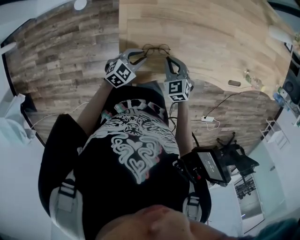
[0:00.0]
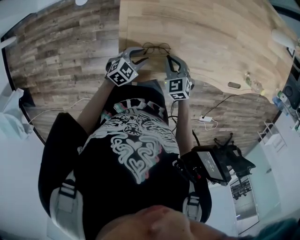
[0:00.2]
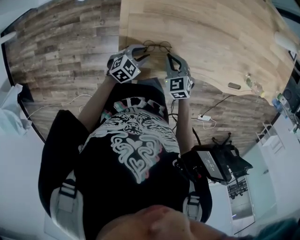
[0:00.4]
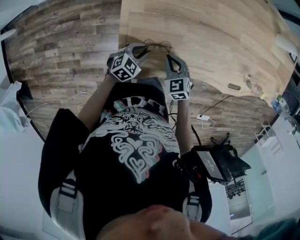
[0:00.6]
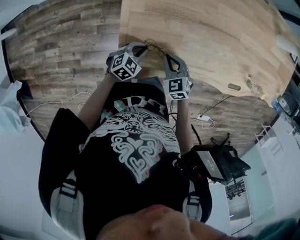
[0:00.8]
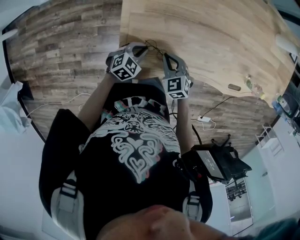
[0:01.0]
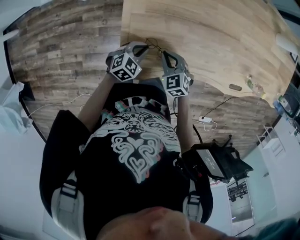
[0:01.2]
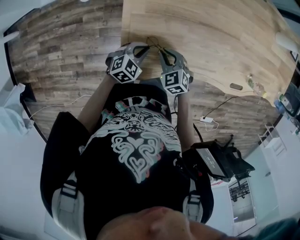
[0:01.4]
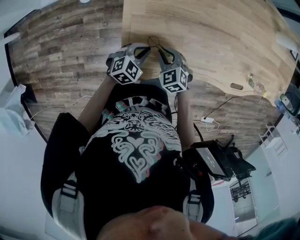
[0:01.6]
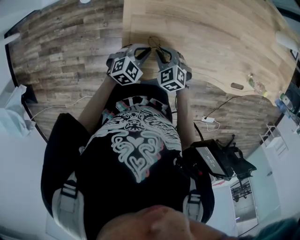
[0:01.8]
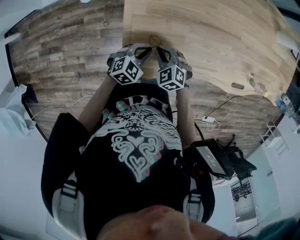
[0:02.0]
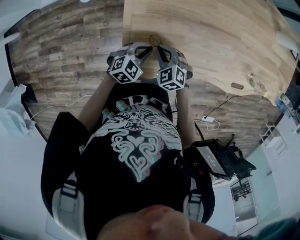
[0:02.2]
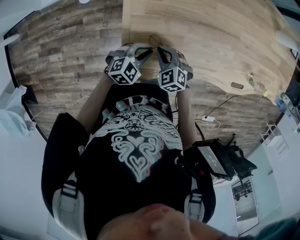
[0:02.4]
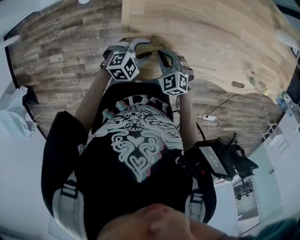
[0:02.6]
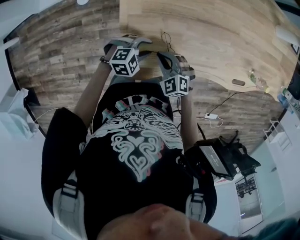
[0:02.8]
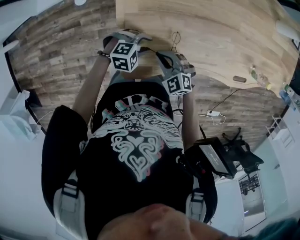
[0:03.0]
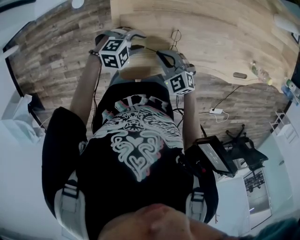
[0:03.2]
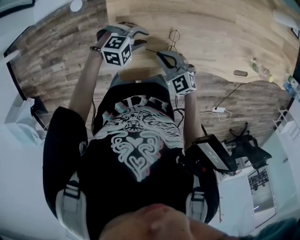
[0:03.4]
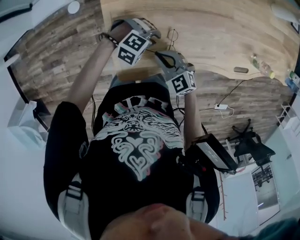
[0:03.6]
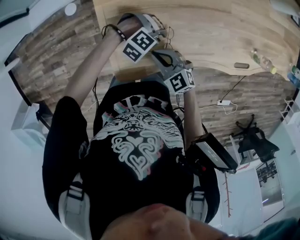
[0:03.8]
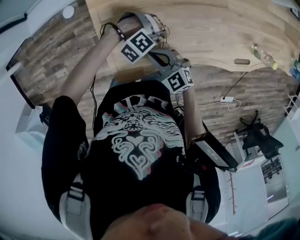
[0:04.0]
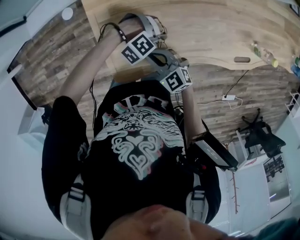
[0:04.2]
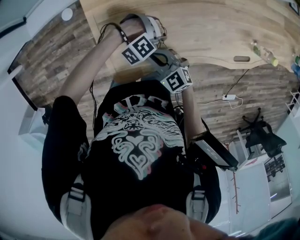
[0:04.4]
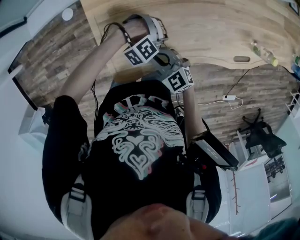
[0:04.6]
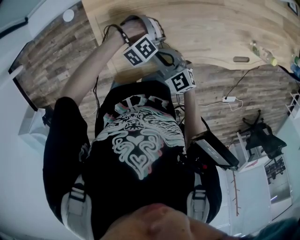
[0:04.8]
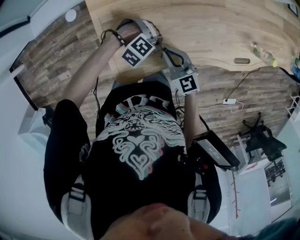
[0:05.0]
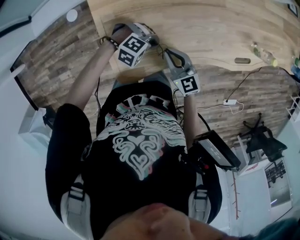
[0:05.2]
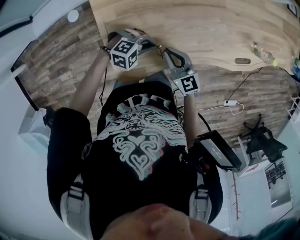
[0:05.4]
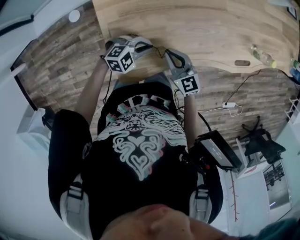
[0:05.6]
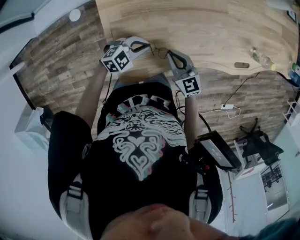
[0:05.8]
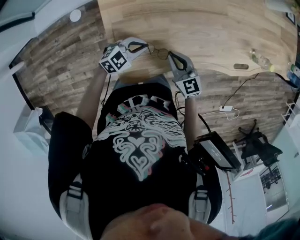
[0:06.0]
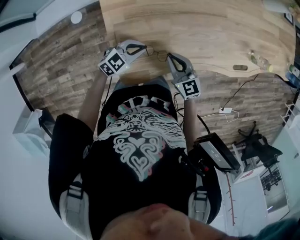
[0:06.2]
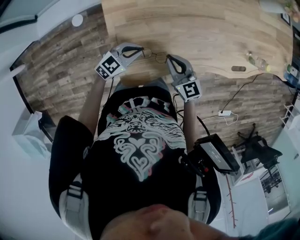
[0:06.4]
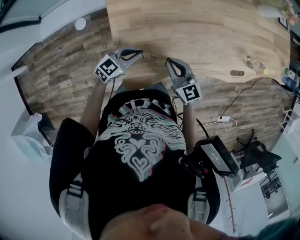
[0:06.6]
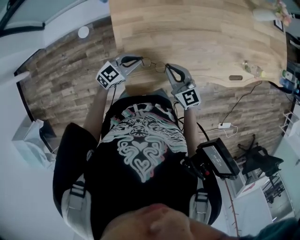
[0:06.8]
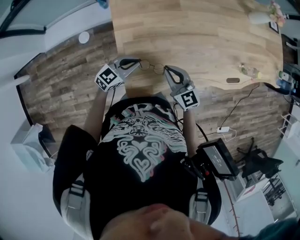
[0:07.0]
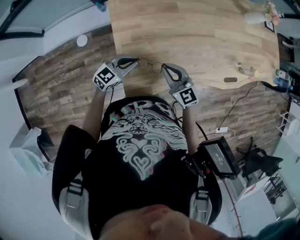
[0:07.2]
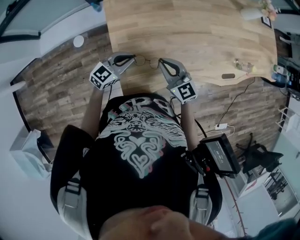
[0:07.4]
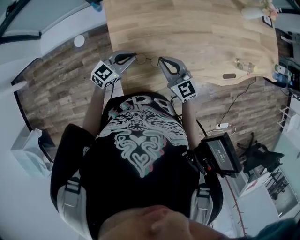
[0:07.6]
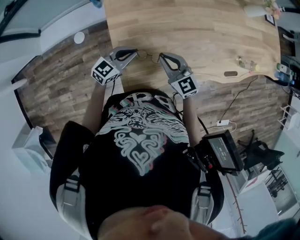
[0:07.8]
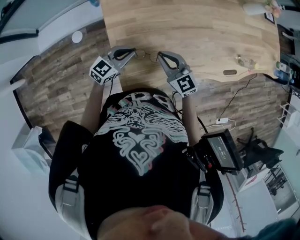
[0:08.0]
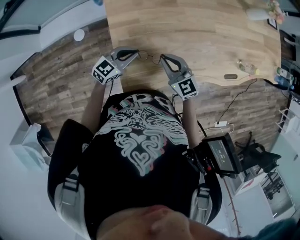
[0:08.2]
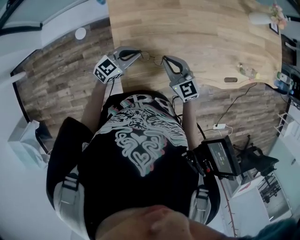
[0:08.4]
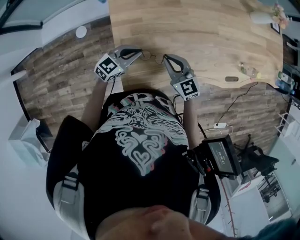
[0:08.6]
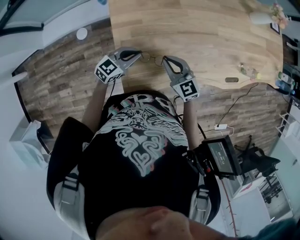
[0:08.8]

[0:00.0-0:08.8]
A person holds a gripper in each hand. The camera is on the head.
0:00.0 to 0:01.4: The grippers make only small movements.
0:01.4 to 0:03.0: The left gripper turns by some 40 degrees, and opens up.
0:03.0 to 0:04.4: The left gripper changes place by about 15 cm, rotates around the line of its fingers by about 60 degrees, clockwise from behind, and closes. Meanwhile the right gripper changes place by approximately 5 cm.
0:04.4 to 0:05.8: The left gripper changes place by approximately 10 cm, and rotates around the line of its fingers by roughly 70 degrees, counterclockwise from behind. The right gripper moves about 5 cm, and rotates approximately 30 degrees.
0:05.8 to 0:07.4: The grippers both shift upward and to the left by some 15 cm. The left gripper turns by about 30 degrees.
0:07.4 to 0:08.8: The grippers make only small movements.

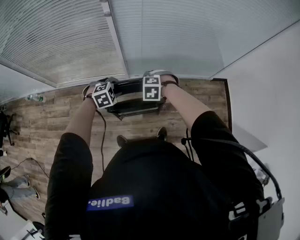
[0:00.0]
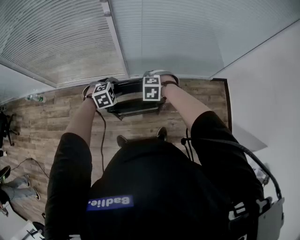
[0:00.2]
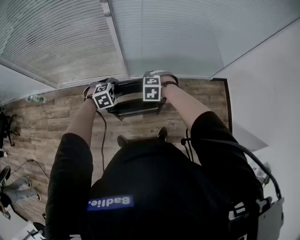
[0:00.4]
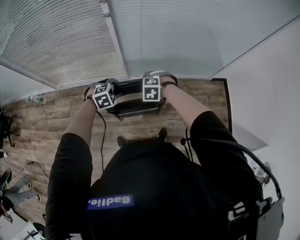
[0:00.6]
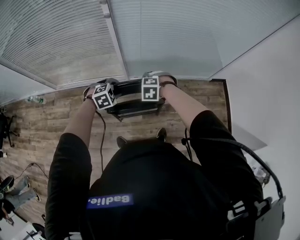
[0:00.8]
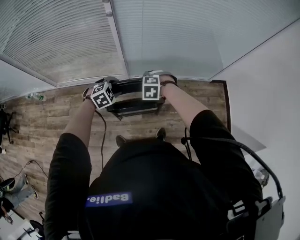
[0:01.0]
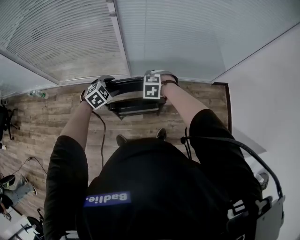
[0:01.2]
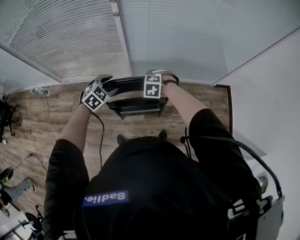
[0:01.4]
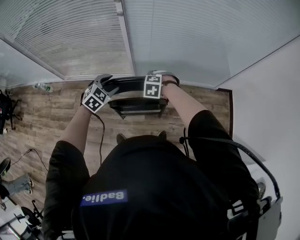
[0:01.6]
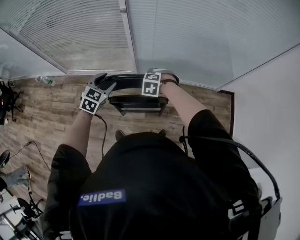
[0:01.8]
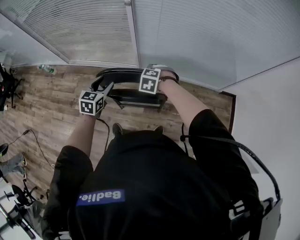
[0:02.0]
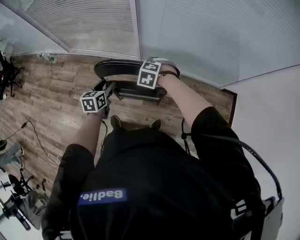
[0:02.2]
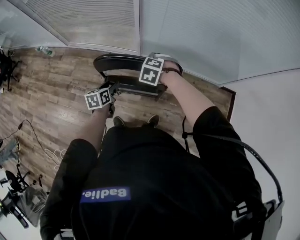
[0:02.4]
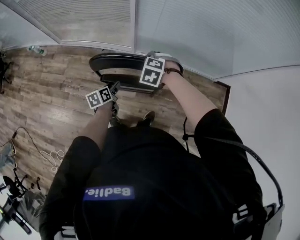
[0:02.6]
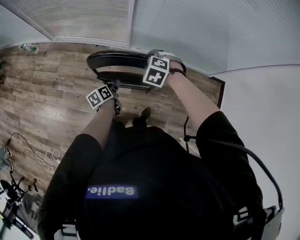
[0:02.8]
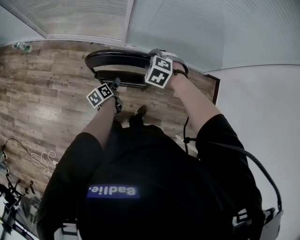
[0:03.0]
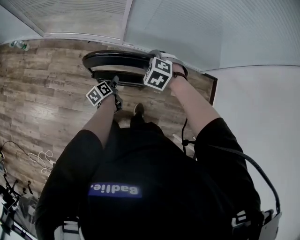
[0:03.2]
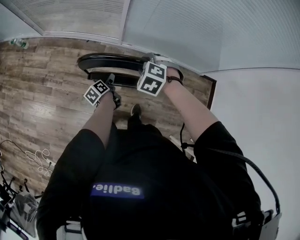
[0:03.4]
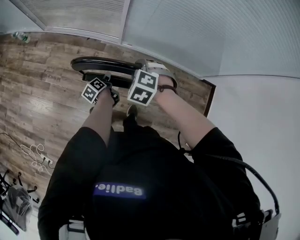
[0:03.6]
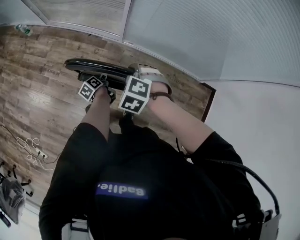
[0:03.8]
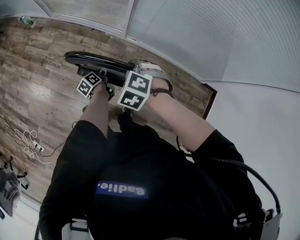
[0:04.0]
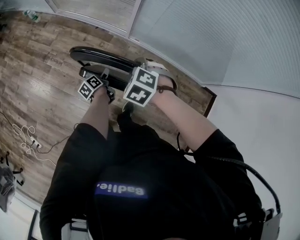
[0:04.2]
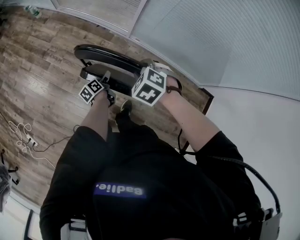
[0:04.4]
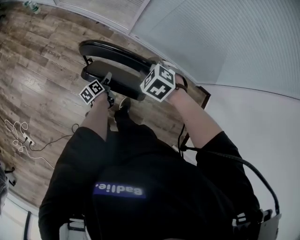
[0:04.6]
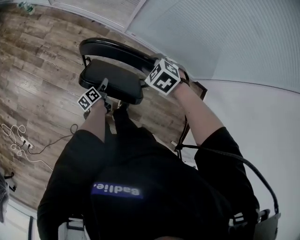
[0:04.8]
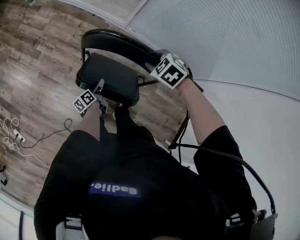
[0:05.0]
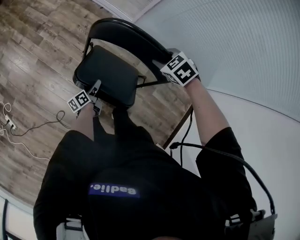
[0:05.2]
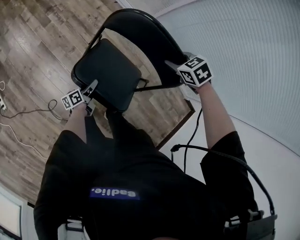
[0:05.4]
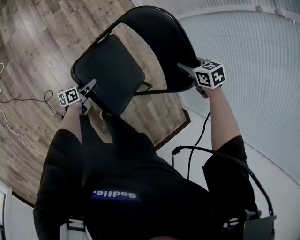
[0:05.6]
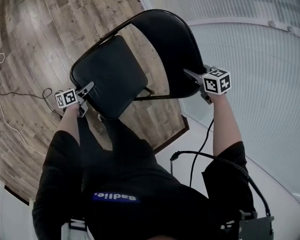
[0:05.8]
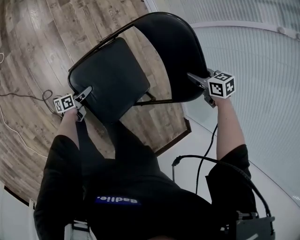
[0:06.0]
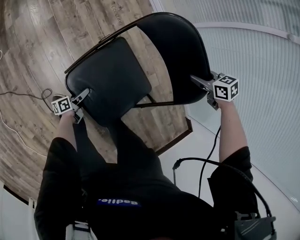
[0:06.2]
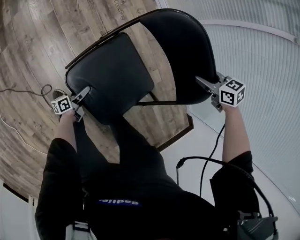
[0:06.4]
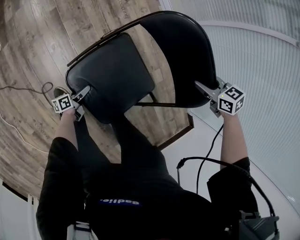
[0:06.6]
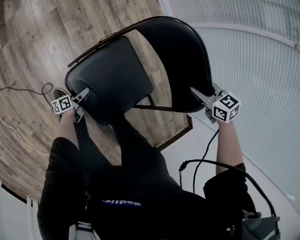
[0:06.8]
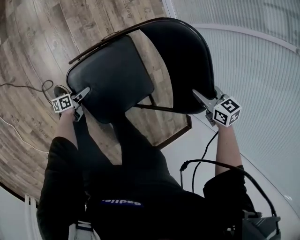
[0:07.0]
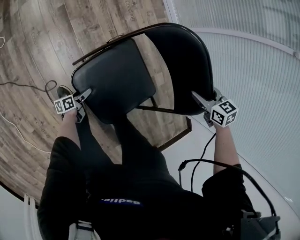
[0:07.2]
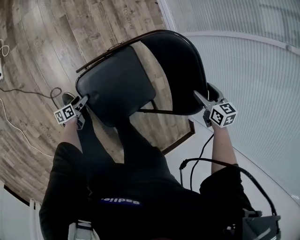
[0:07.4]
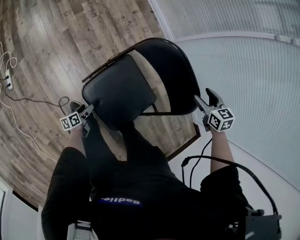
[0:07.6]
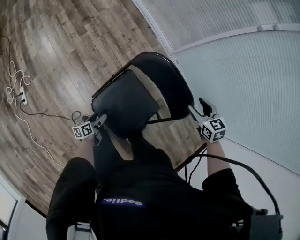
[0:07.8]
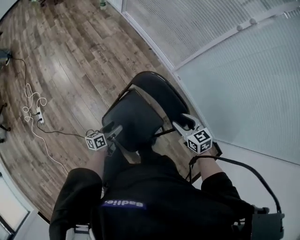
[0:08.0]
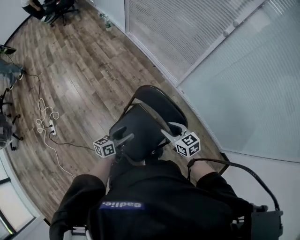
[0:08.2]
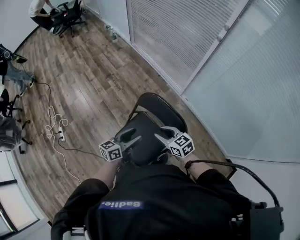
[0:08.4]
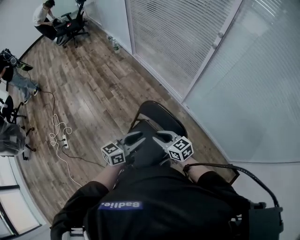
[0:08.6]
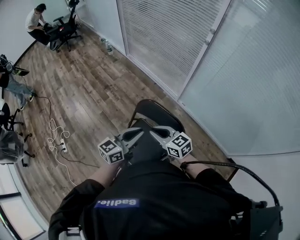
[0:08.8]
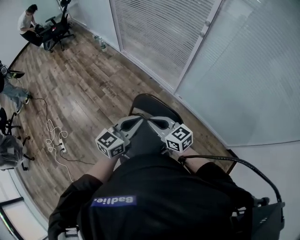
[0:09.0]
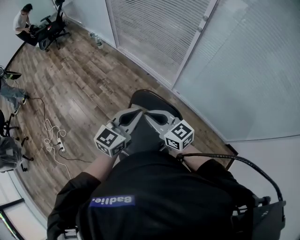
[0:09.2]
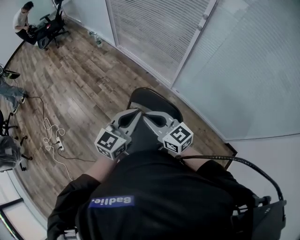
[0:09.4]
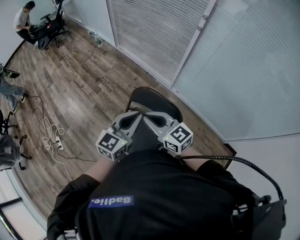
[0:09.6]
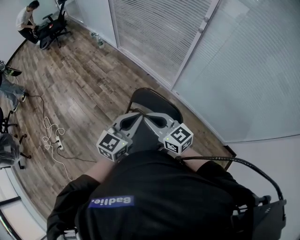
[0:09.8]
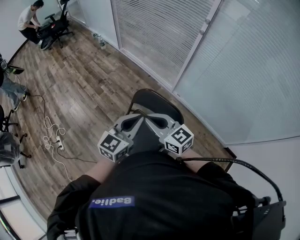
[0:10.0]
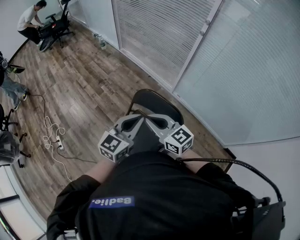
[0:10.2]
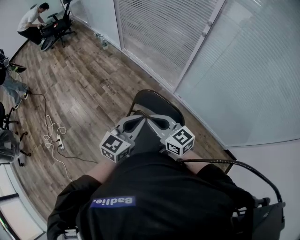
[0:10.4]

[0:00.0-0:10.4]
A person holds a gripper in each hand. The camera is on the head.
0:00.0 to 0:01.4: The left gripper goes about 5 cm upward, and turns by about 30 degrees.
0:01.4 to 0:03.0: The left gripper travels downward and backward by some 25 cm, and rolls counterclockwise, seen from behind, by some 110 degrees.
0:03.0 to 0:04.4: The left gripper heads downward, covering some 5 cm, and changes its angle by roughly 20 degrees; the right gripper is displaced backward by some 10 cm.
0:04.4 to 0:06.0: The left gripper moves approximately 35 cm; the right gripper travels downward by some 15 cm, and rotates roughly 30 degrees.
0:06.0 to 0:07.4: The right gripper moves approximately 10 cm, and opens up. The left gripper ends up about 20 cm from where it was.
0:07.4 to 0:09.0: The right gripper travels upward, to the left and backward by roughly 35 cm, tilts its fingers some 50 degrees upward, and closes its fingers, while the left gripper moves upward, about 70 cm, rotates around the line of its fingers by some 70 degrees, clockwise from behind, and closes.
0:09.0 to 0:10.4: The right gripper shifts by approximately 5 cm.

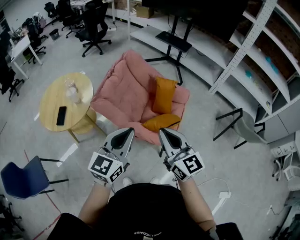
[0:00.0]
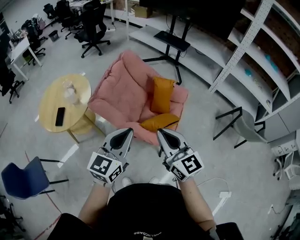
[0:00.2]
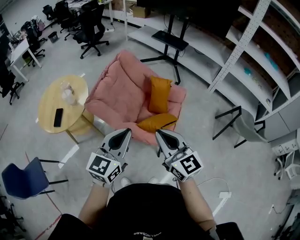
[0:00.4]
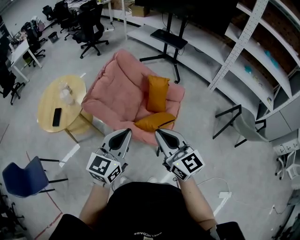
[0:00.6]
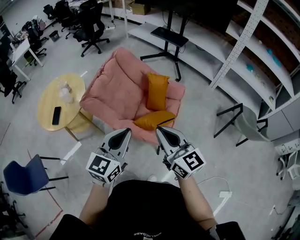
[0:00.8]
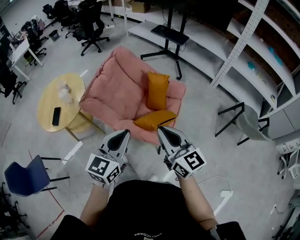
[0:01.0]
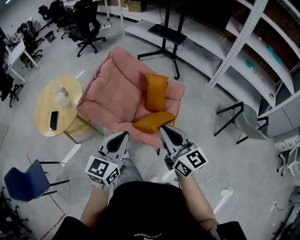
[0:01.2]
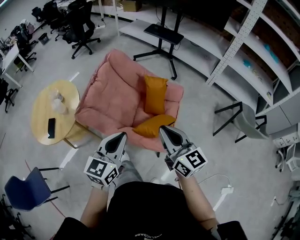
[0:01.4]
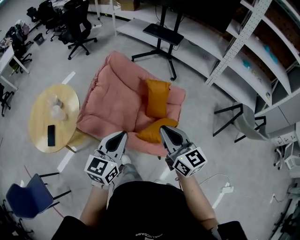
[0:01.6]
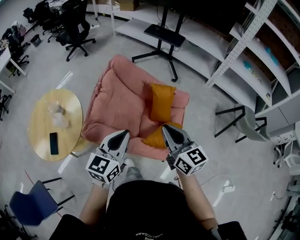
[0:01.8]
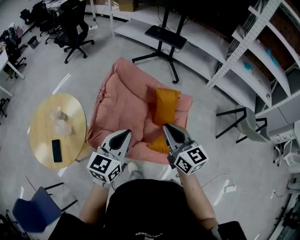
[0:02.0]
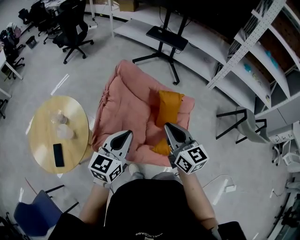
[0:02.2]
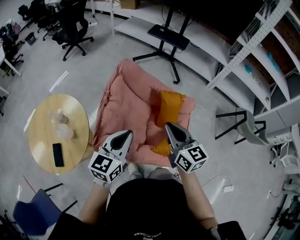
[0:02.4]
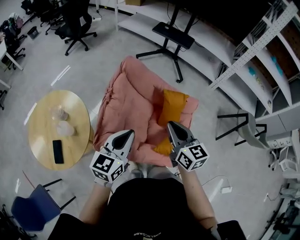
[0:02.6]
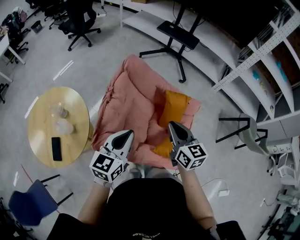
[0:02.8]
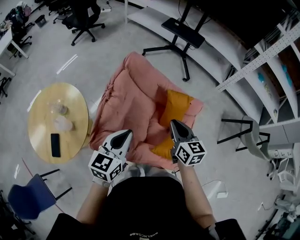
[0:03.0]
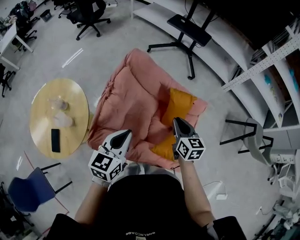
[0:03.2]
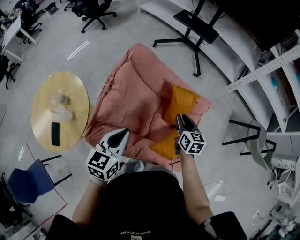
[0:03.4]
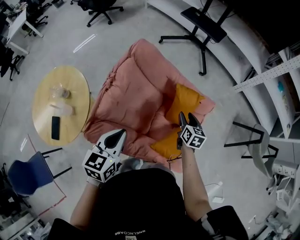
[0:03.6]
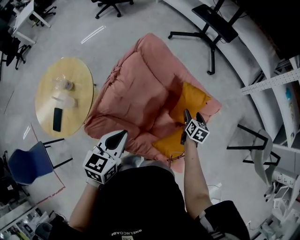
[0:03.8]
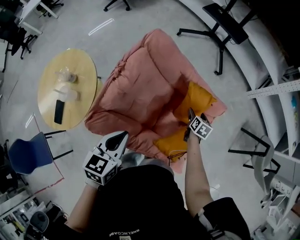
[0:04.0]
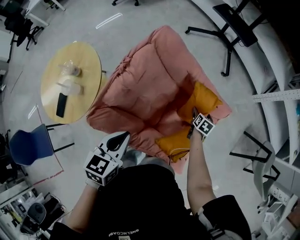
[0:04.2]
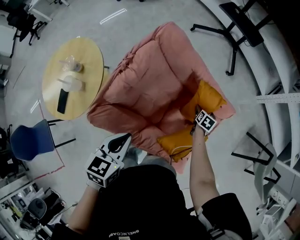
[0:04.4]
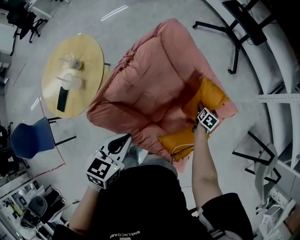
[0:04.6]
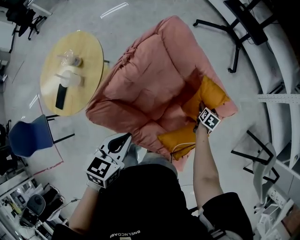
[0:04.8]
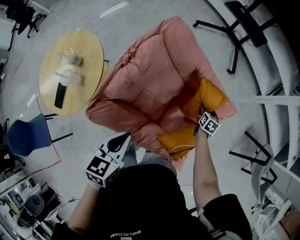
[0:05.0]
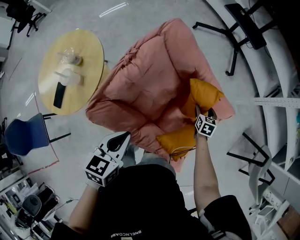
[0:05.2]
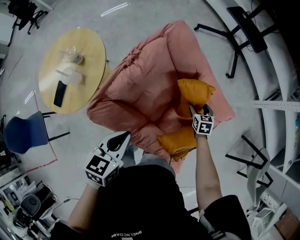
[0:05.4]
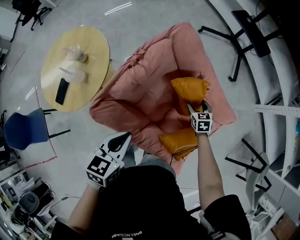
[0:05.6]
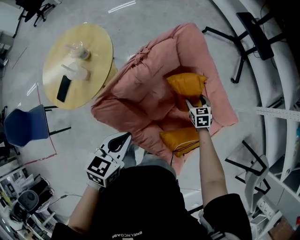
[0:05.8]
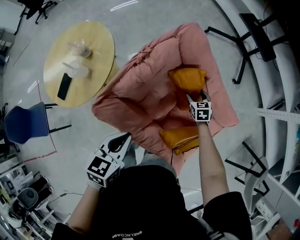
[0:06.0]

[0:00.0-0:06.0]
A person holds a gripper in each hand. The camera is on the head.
0:00.0 to 0:01.6: The right gripper goes roughly 15 cm forward. Meanwhile the left gripper shifts some 15 cm forward and downward.
0:01.6 to 0:03.0: The left gripper goes some 20 cm forward and to the left, while the right gripper moves forward, downward and to the left, about 25 cm.
0:03.0 to 0:04.4: The left gripper travels downward by some 10 cm, and turns by approximately 30 degrees. The right gripper shifts about 35 cm downward and forward, angles its fingers downward, by some 30 degrees, and opens up.
0:04.4 to 0:06.0: The right gripper travels to the left by about 20 cm, and rotates around the line of its fingers by roughly 40 degrees, counterclockwise from behind.
